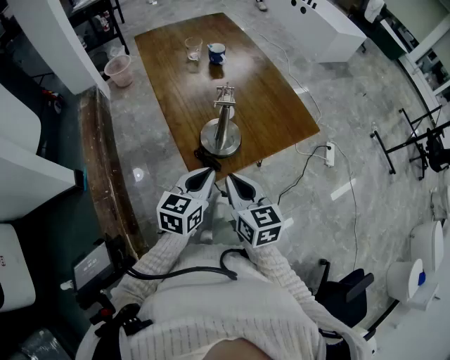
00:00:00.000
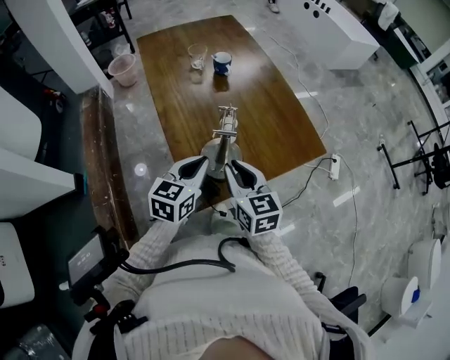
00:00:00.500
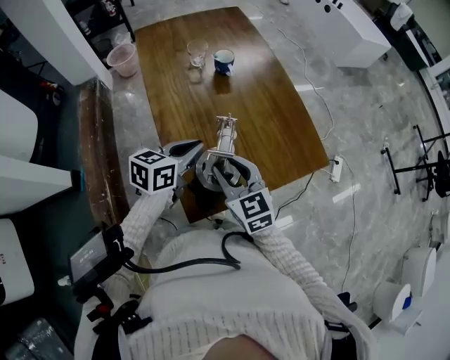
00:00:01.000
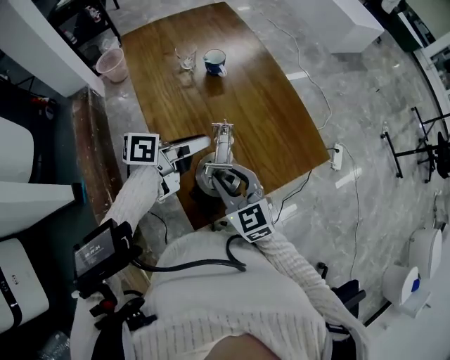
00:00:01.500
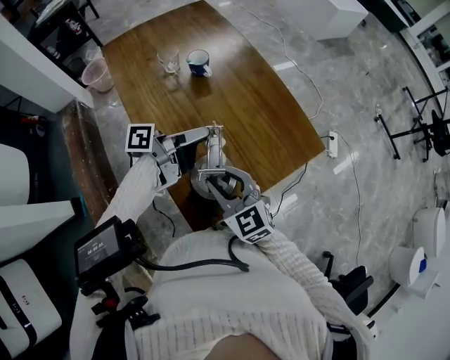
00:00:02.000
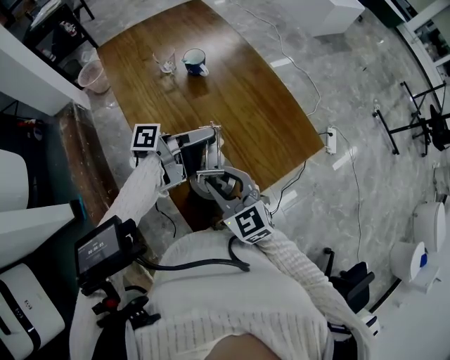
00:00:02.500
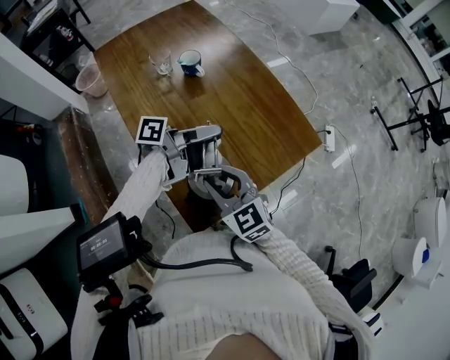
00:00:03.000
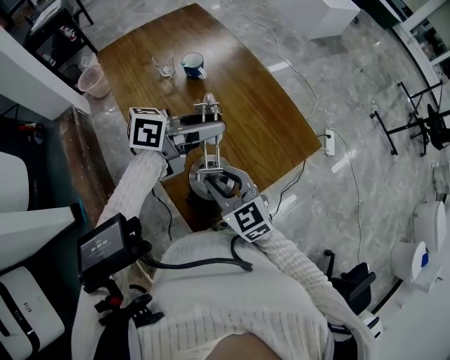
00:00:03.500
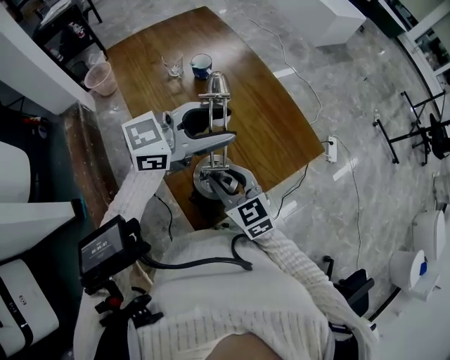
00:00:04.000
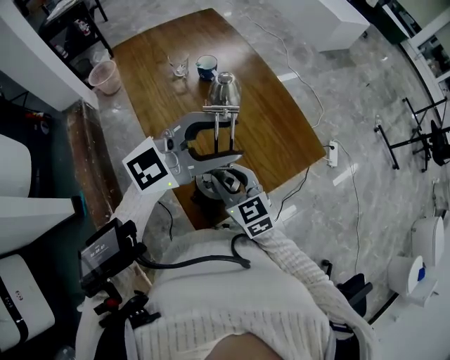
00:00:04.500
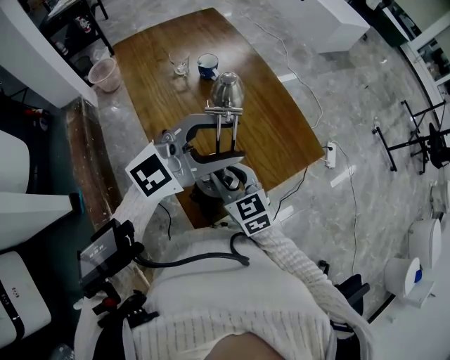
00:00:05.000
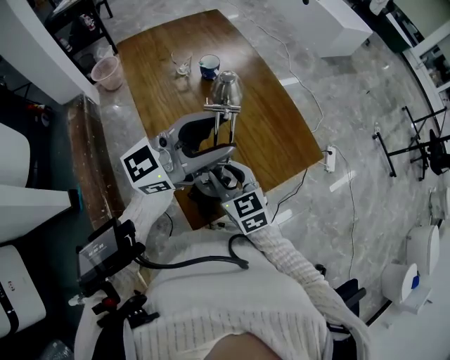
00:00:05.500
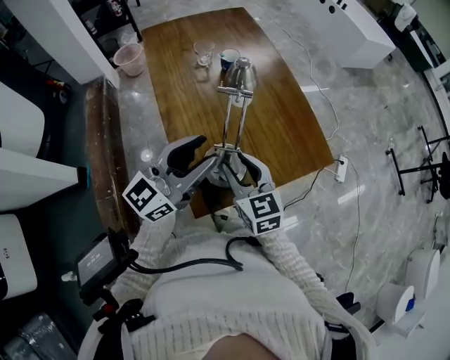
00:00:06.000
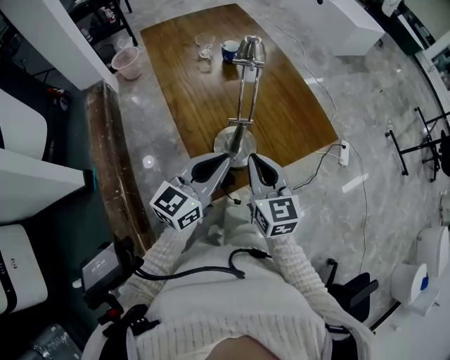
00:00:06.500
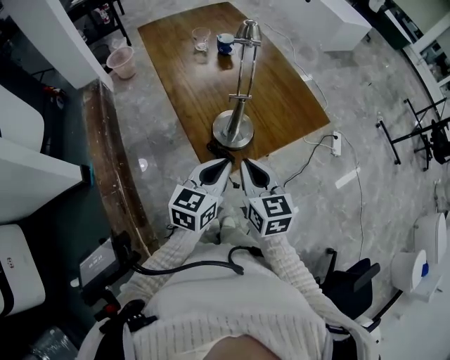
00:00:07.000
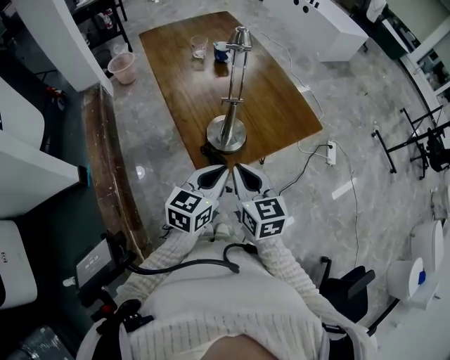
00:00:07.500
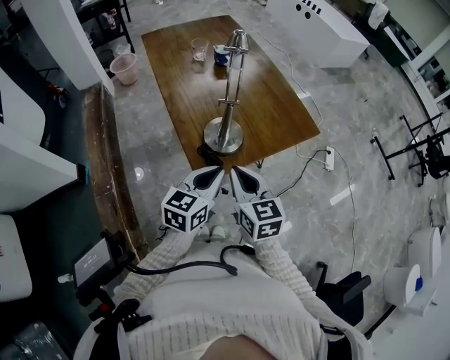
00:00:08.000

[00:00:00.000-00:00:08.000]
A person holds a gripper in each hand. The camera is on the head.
00:00:00.000 to 00:00:02.000: The left gripper moves forward, about 25 cm, rotates some 70 degrees, and opens; the right gripper heads forward, covering some 15 cm, rotates approximately 30 degrees, and opens.
00:00:02.000 to 00:00:04.000: The left gripper shifts approximately 15 cm upward, and twists approximately 70 degrees clockwise, seen from behind.
00:00:04.000 to 00:00:06.000: The left gripper shifts approximately 10 cm backward and to the left, and rotates some 40 degrees.
00:00:06.000 to 00:00:08.000: The left gripper travels backward and downward by about 20 cm, rotates about 30 degrees, and closes its fingers; the right gripper heads backward, covering about 15 cm, and closes up.

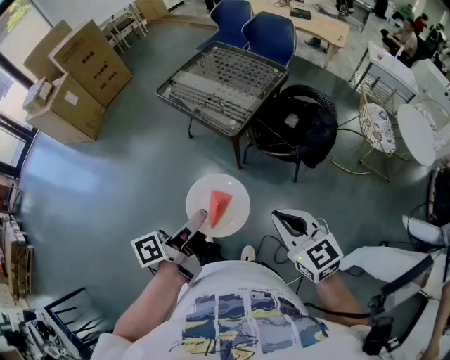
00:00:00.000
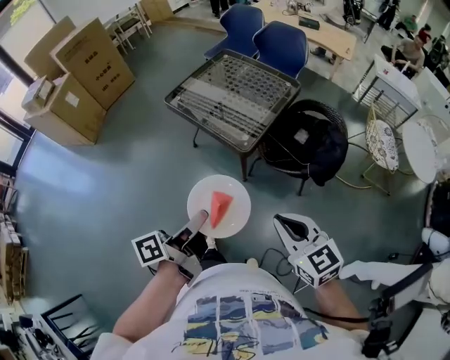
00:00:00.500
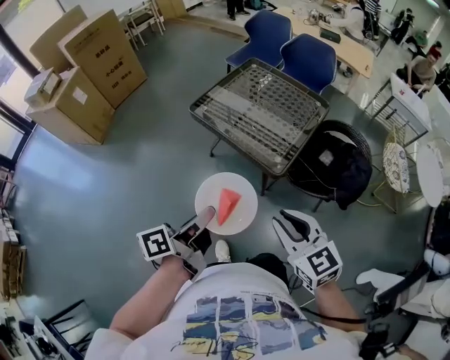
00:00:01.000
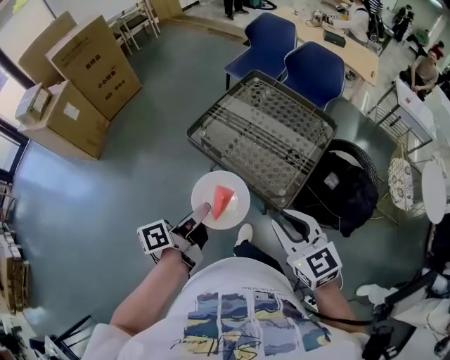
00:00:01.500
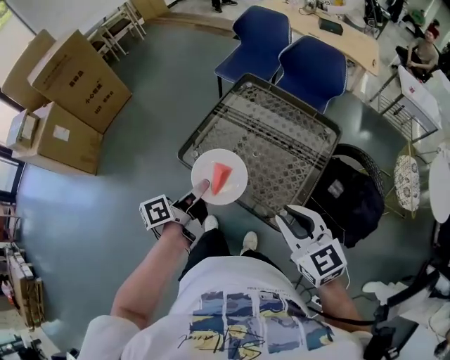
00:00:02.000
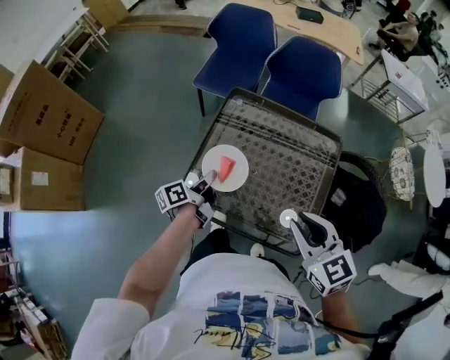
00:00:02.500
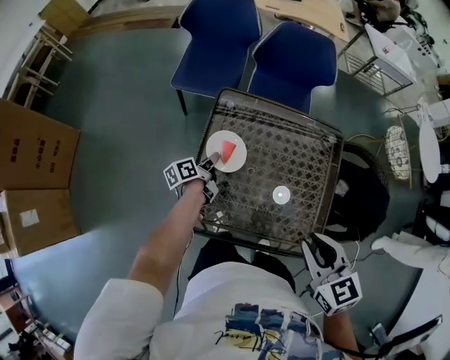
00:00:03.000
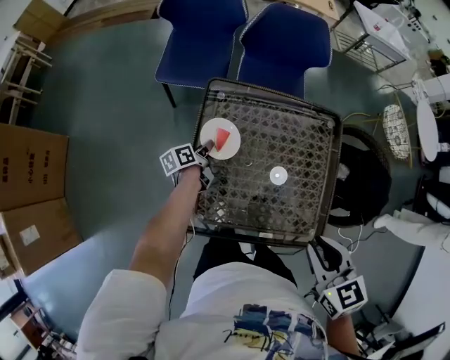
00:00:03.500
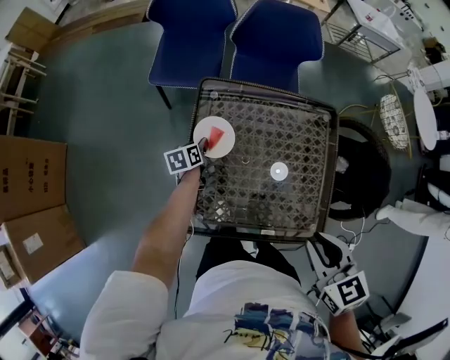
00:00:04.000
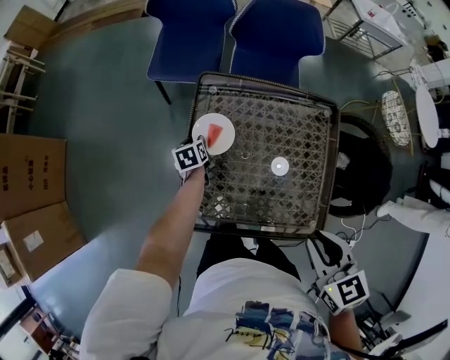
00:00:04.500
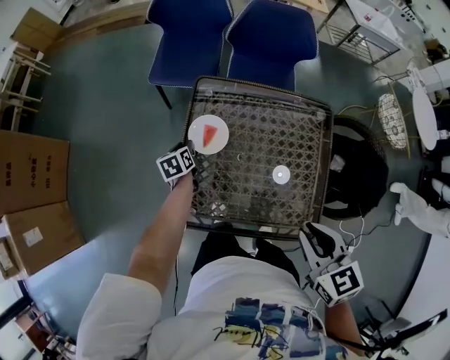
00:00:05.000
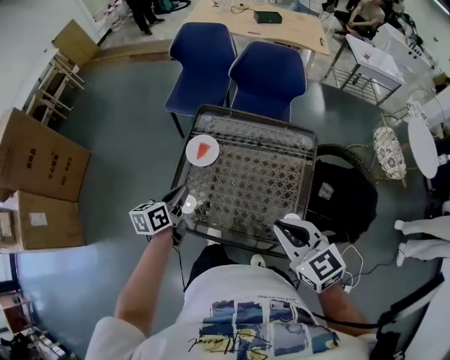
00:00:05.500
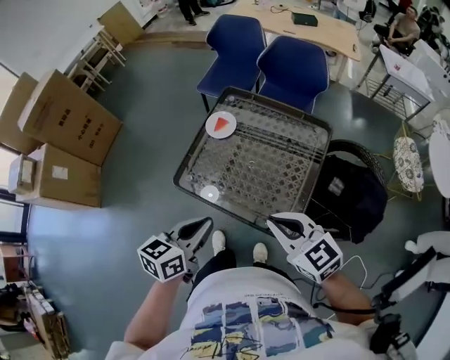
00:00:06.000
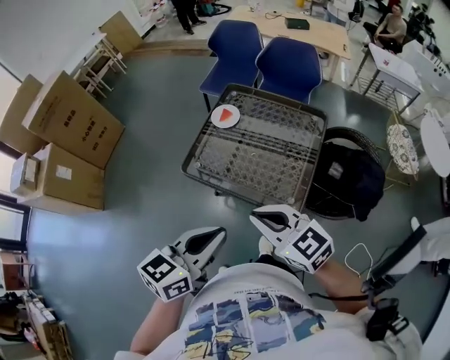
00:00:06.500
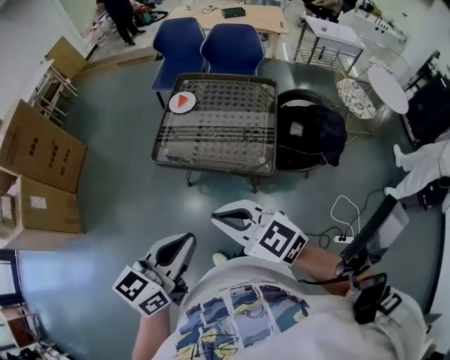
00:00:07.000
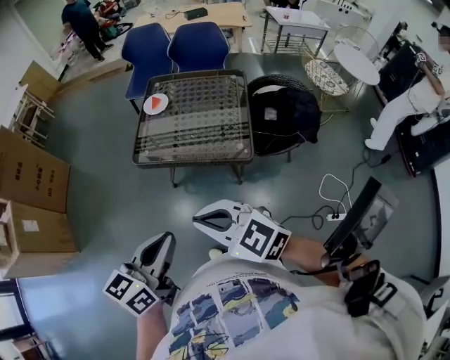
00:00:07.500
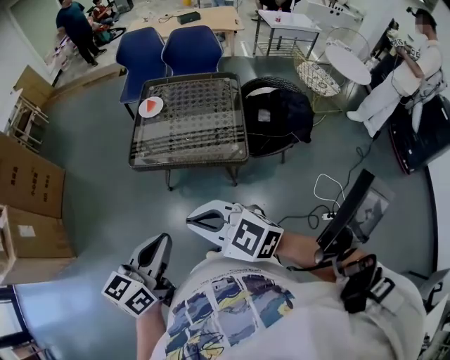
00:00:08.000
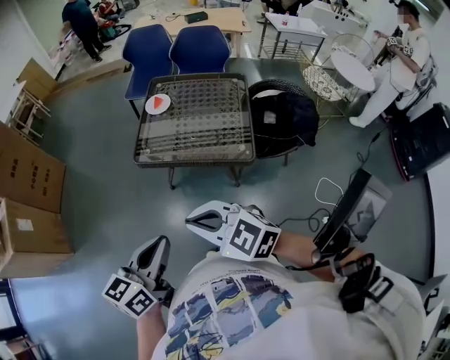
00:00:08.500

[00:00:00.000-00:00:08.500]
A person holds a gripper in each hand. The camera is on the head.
00:00:00.000 to 00:00:02.000: The two grippers travel together, forward and to the left, roughly 60 cm.
00:00:02.000 to 00:00:04.000: The left gripper changes place by roughly 50 cm, and points its fingers some 40 degrees further downward; the right gripper moves about 20 cm, and turns by roughly 40 degrees.
00:00:04.000 to 00:00:06.500: The right gripper shifts about 25 cm backward, and swivels approximately 50 degrees; the left gripper travels backward and upward by about 70 cm, and swivels approximately 40 degrees.
00:00:06.500 to 00:00:08.500: The right gripper heads backward and to the left, covering about 25 cm; the left gripper shifts roughly 25 cm to the left and backward.

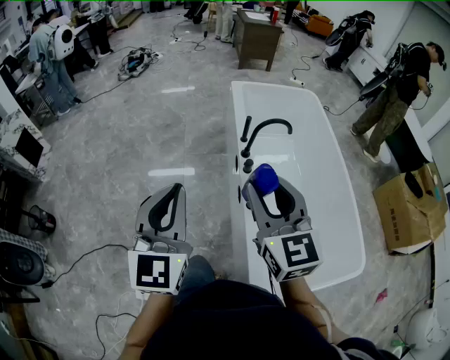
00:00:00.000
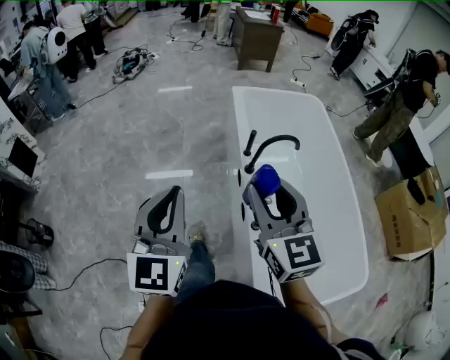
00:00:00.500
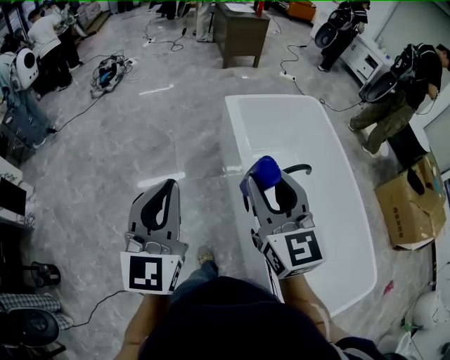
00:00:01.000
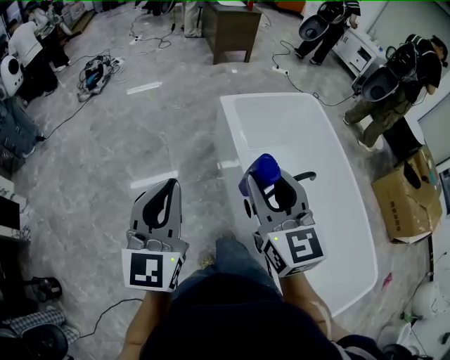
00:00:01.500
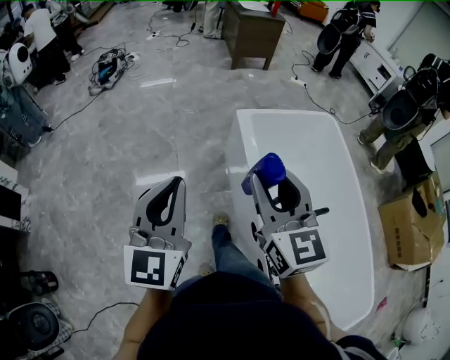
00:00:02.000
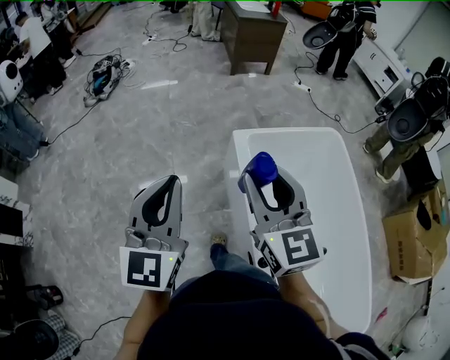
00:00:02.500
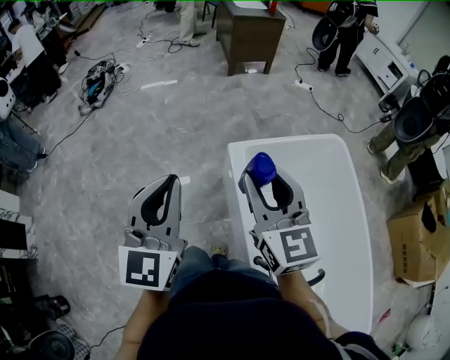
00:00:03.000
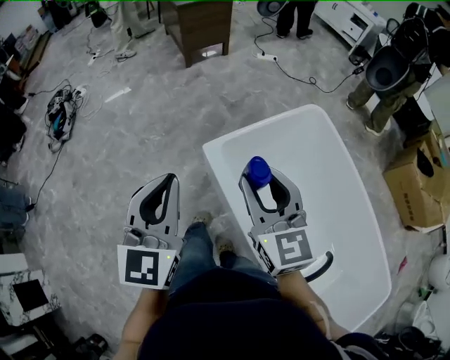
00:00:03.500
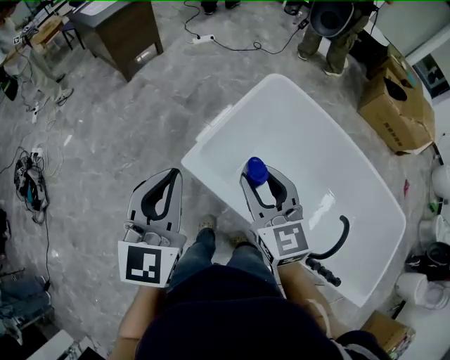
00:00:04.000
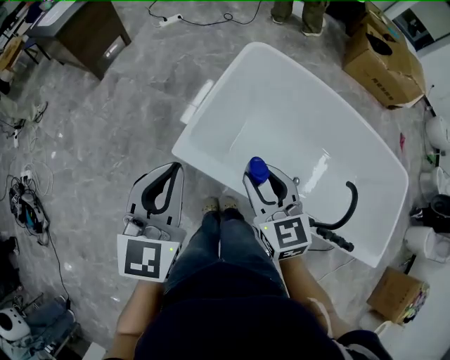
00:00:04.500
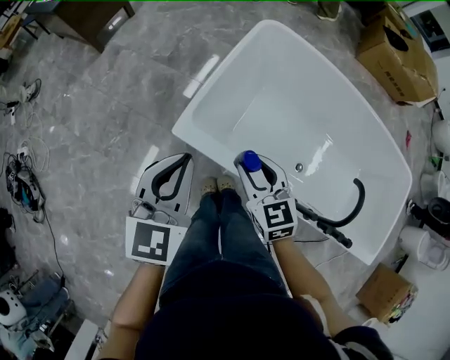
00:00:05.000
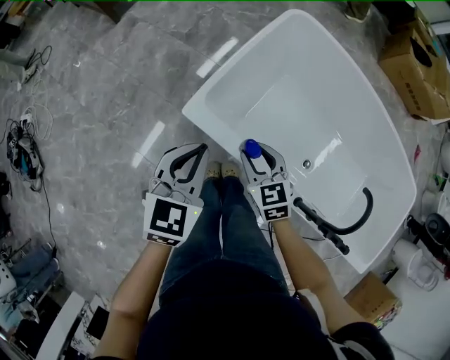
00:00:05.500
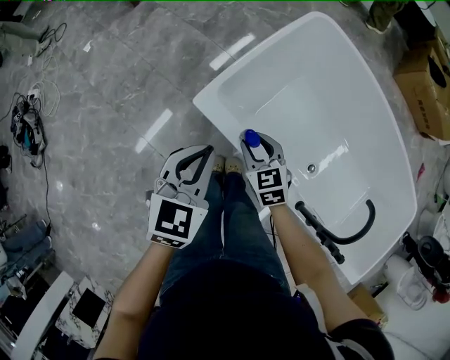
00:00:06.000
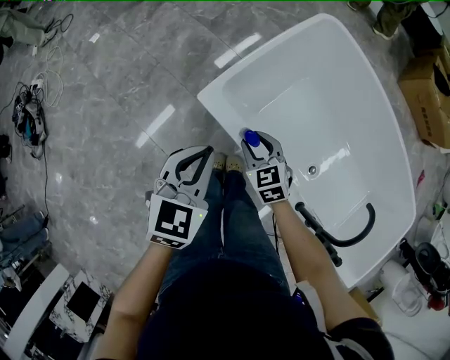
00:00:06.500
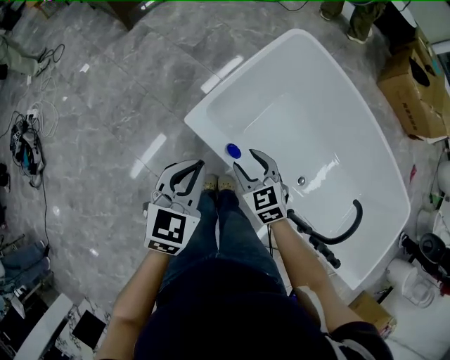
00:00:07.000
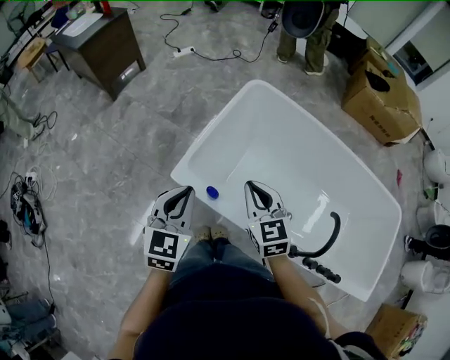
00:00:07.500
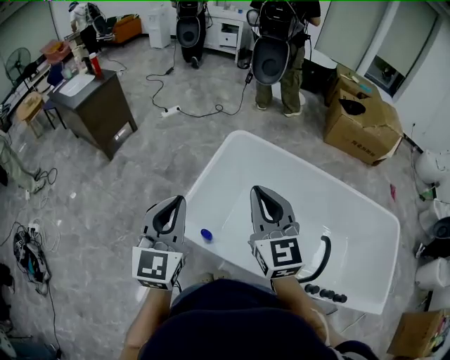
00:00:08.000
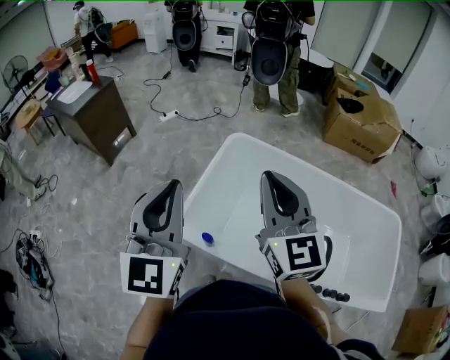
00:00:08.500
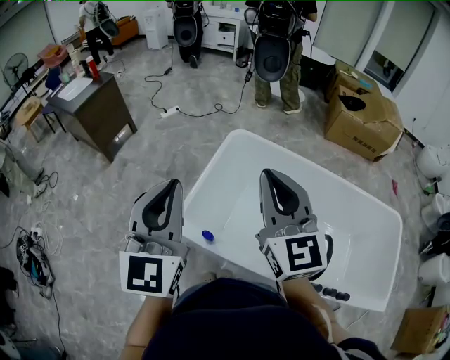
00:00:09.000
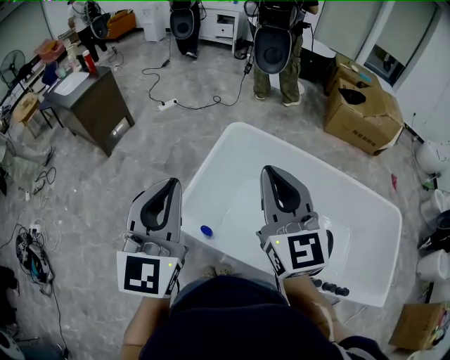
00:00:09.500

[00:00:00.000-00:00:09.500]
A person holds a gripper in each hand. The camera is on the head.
00:00:00.000 to 00:00:02.000: The two grippers travel together, forward, approximately 60 cm.
00:00:02.000 to 00:00:04.000: Both grippers are carried roughly 50 cm. The left gripper swivels roughly 40 degrees, while the right gripper changes its angle by roughly 40 degrees.
00:00:04.000 to 00:00:05.500: The two grippers go about 25 cm downward. The left gripper rotates roughly 30 degrees. The right gripper swivels roughly 20 degrees.
00:00:05.500 to 00:00:07.500: The left gripper moves upward, roughly 10 cm, while the right gripper heads upward, covering some 15 cm, and closes its fingers.
00:00:07.500 to 00:00:09.500: Both grippers move upward, roughly 25 cm. The left gripper swivels roughly 30 degrees, while the right gripper changes its angle by roughly 30 degrees.
